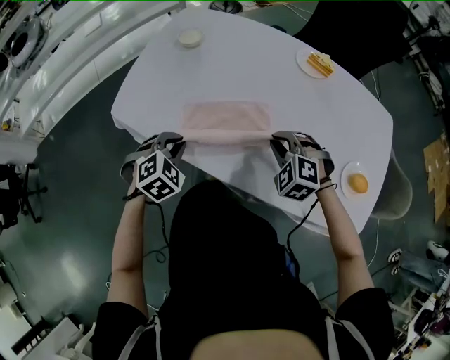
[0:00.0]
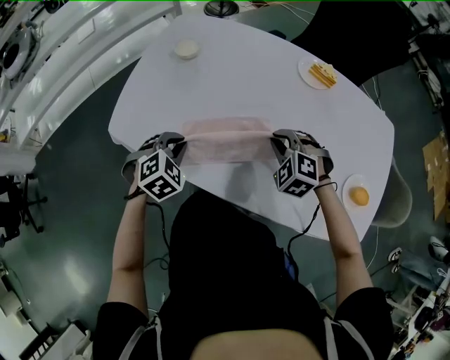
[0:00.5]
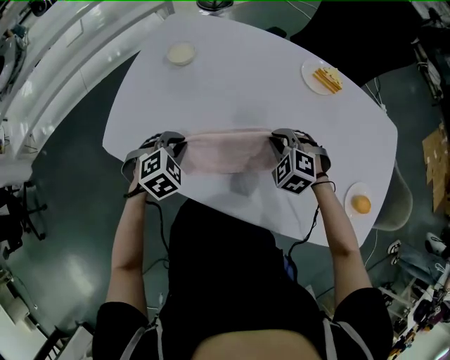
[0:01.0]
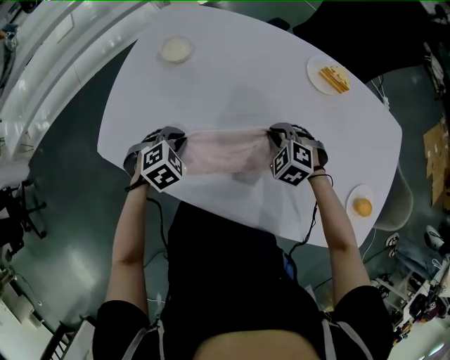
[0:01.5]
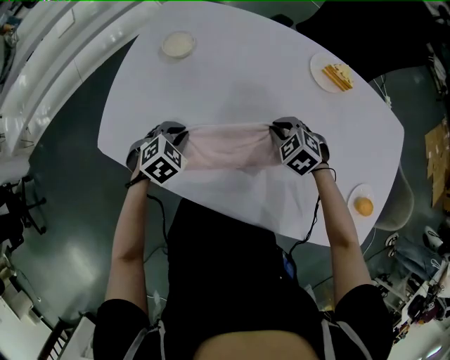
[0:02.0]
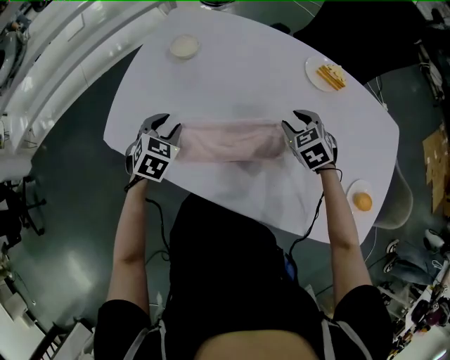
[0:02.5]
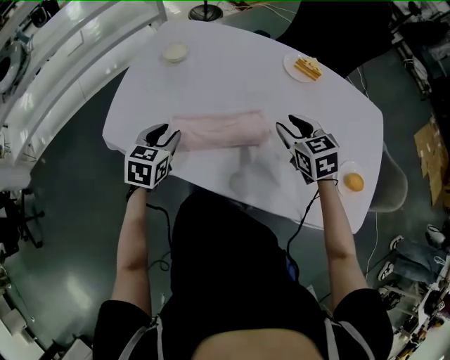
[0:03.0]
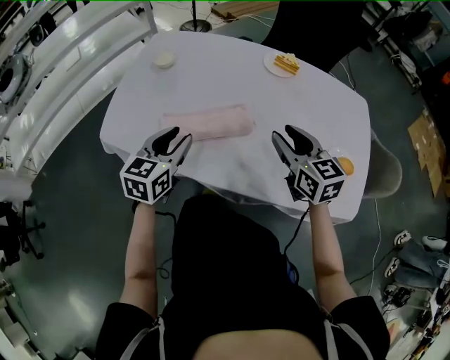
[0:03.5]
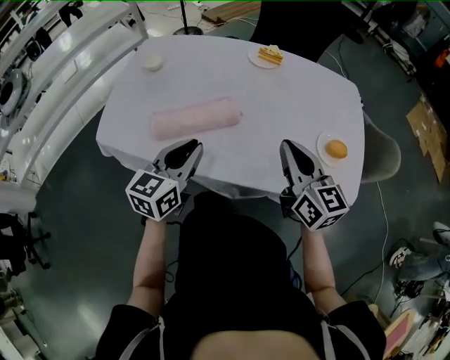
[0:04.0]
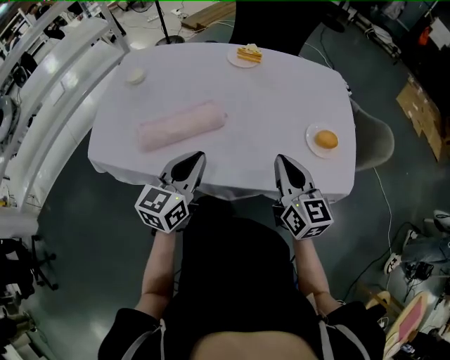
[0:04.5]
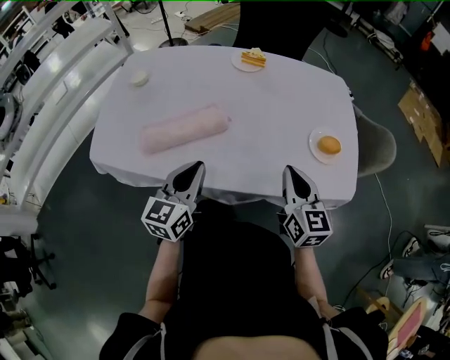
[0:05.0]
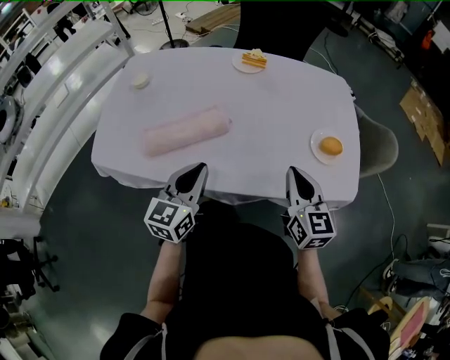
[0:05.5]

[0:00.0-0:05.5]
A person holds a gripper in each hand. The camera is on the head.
0:00.0 to 0:02.0: Both grippers travel together forward and downward, approximately 20 cm. The right gripper swivels some 30 degrees.
0:02.0 to 0:03.5: The two grippers go approximately 30 cm upward and backward. The right gripper points its fingers approximately 40 degrees further upward, and opens up; the left gripper angles its fingers upward, by roughly 40 degrees, and opens its fingers.
0:03.5 to 0:05.5: Both grippers move to the right and backward, about 15 cm. The right gripper swivels some 30 degrees, and closes; the left gripper closes its fingers.

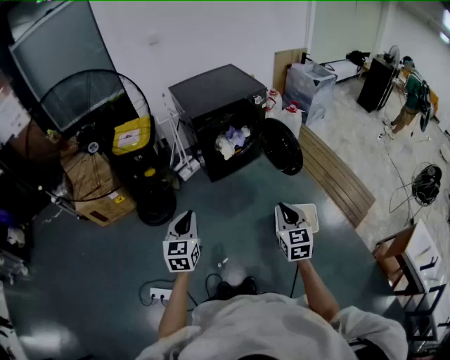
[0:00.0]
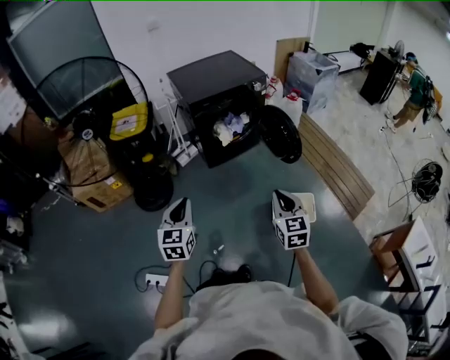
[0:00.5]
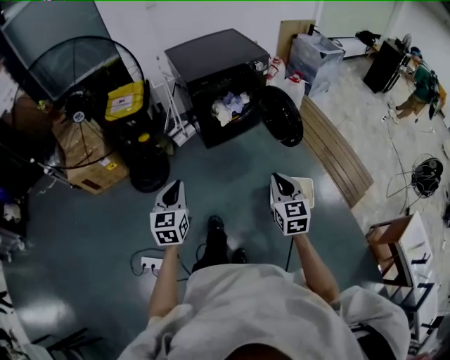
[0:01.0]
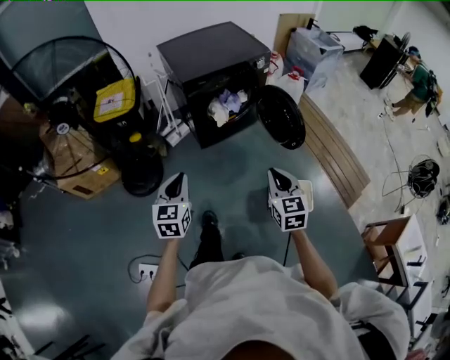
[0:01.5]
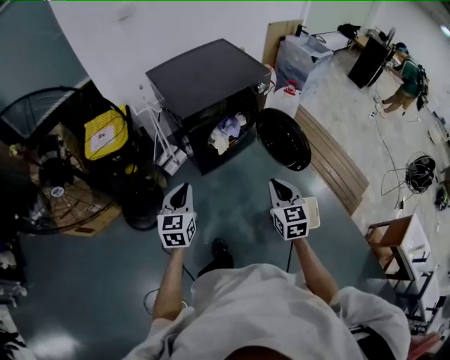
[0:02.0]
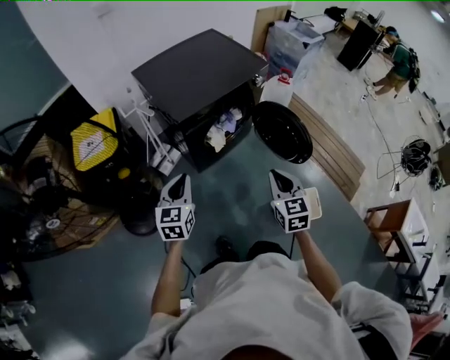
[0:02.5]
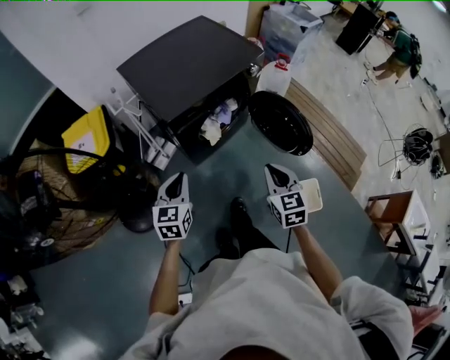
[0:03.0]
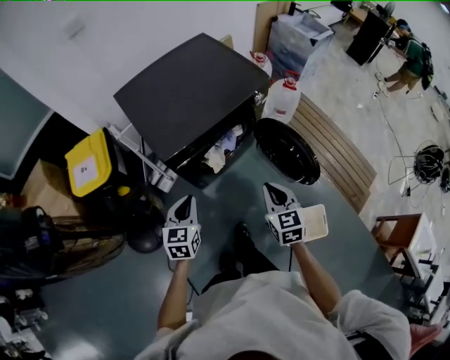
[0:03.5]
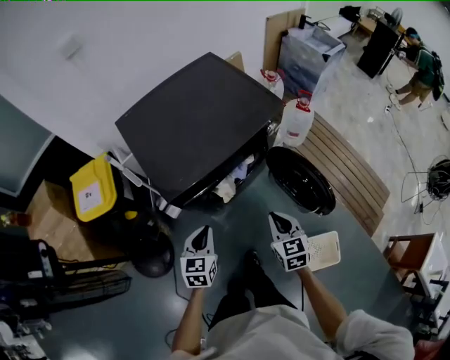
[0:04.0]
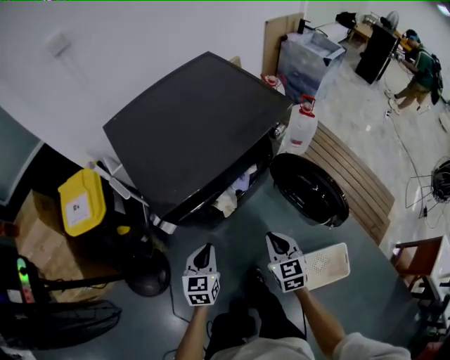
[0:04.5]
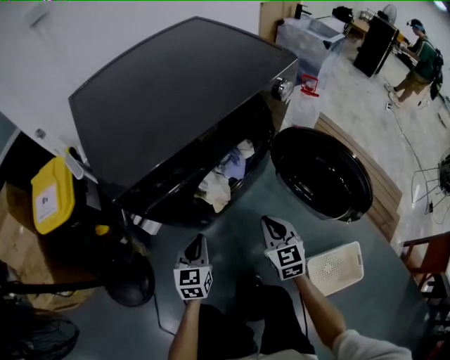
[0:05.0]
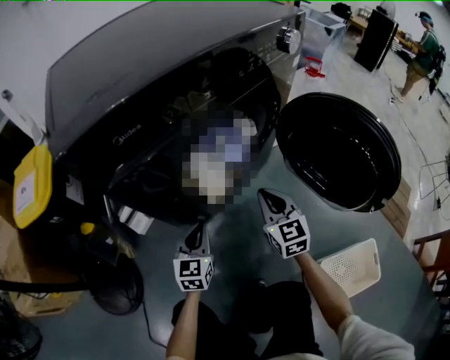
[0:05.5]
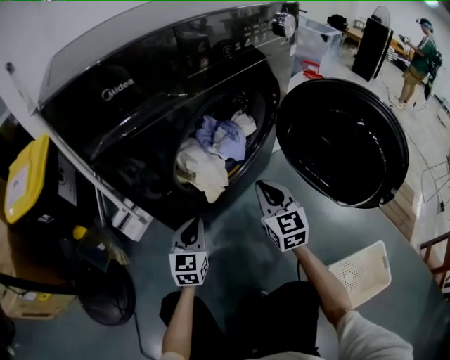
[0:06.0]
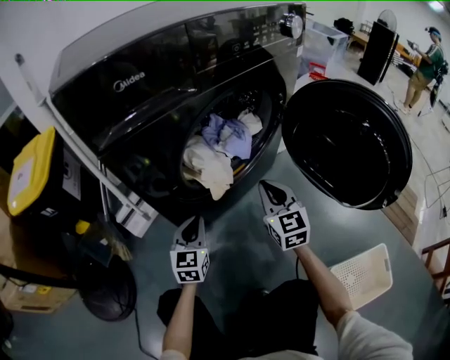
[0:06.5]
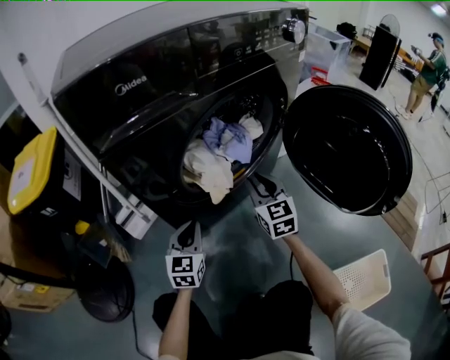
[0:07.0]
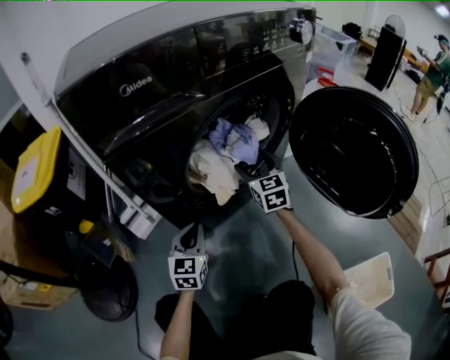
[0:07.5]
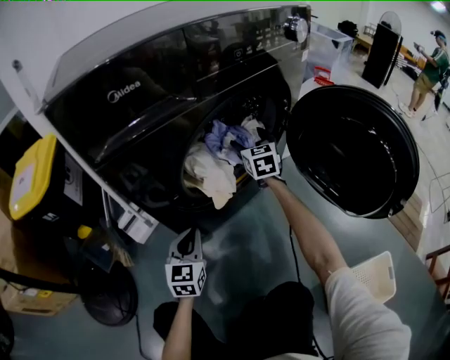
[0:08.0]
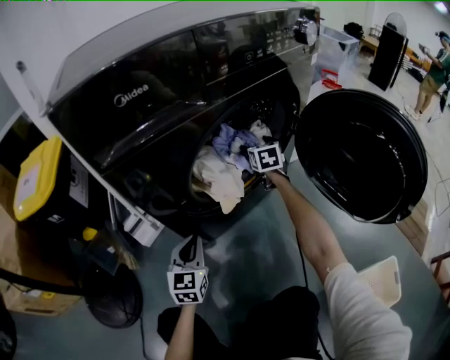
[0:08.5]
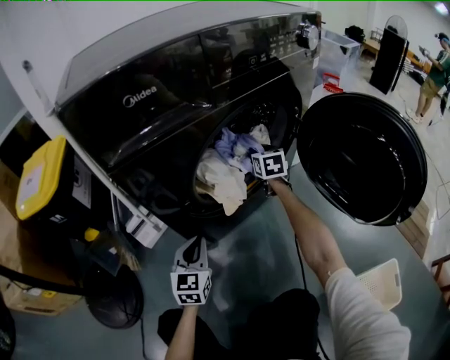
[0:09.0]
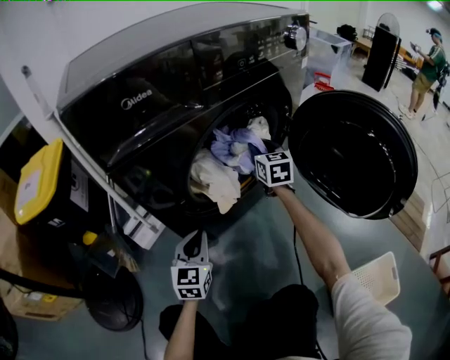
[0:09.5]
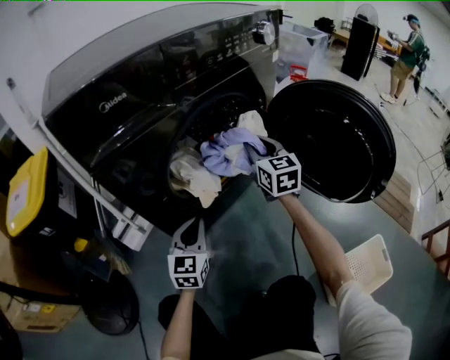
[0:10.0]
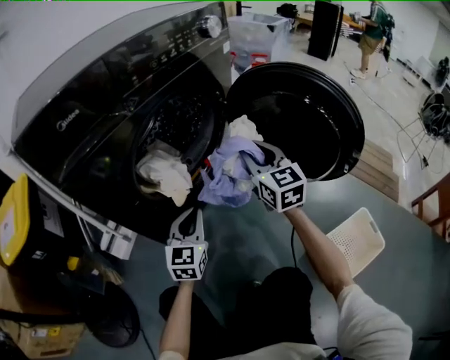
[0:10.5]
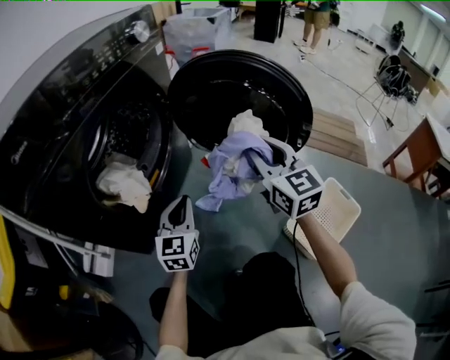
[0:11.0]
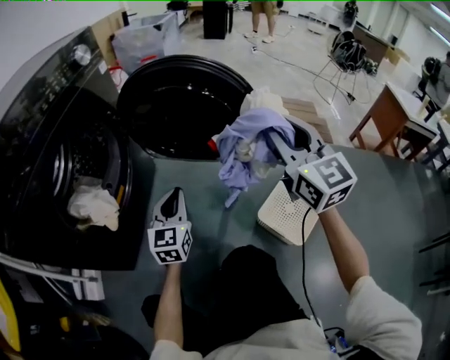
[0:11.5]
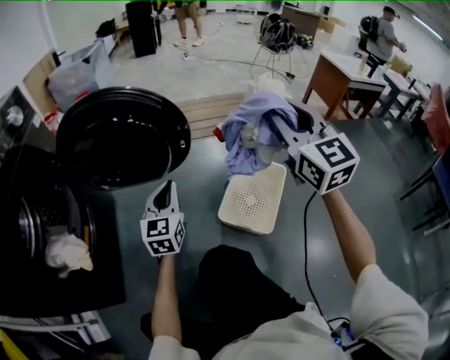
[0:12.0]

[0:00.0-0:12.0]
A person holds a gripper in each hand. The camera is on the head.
0:00.0 to 0:02.0: Both grippers travel together forward, some 30 cm.
0:02.0 to 0:04.0: Both grippers move forward and downward, roughly 30 cm.
0:04.0 to 0:06.0: Both grippers travel together downward, roughly 50 cm. The right gripper turns by some 20 degrees.
0:06.0 to 0:08.0: The right gripper is displaced forward by roughly 20 cm, and opens up.
0:08.0 to 0:10.0: The left gripper moves to the right, about 5 cm. The right gripper is displaced backward, upward and to the right by some 15 cm, and closes up.
0:10.0 to 0:12.0: Both grippers are carried approximately 50 cm. The right gripper swivels some 50 degrees. Meanwhile the left gripper rotates some 50 degrees.

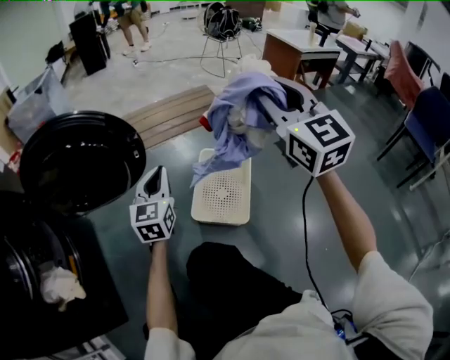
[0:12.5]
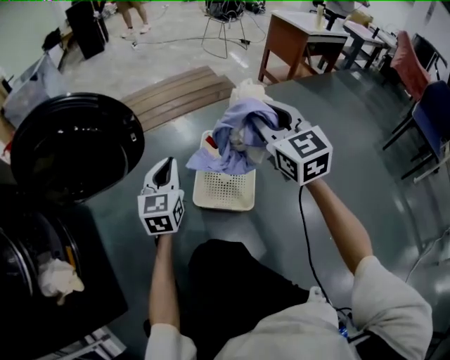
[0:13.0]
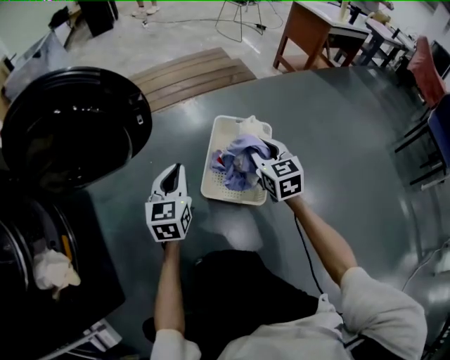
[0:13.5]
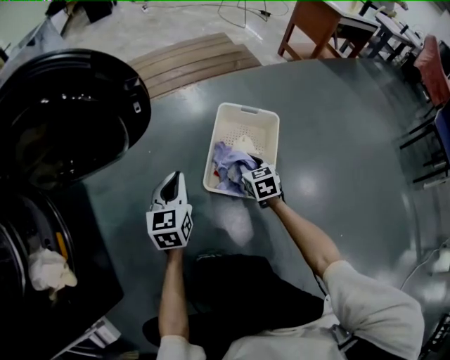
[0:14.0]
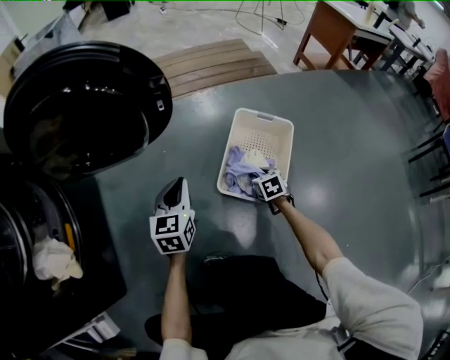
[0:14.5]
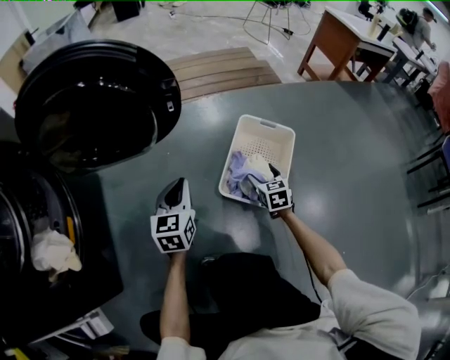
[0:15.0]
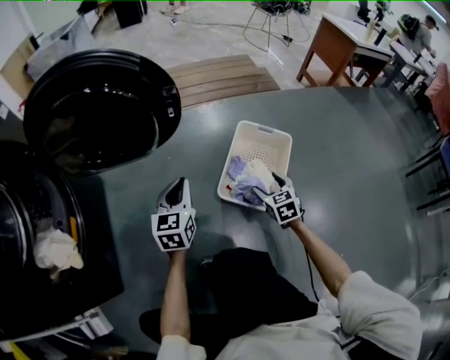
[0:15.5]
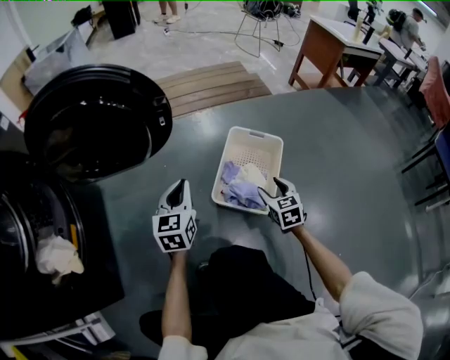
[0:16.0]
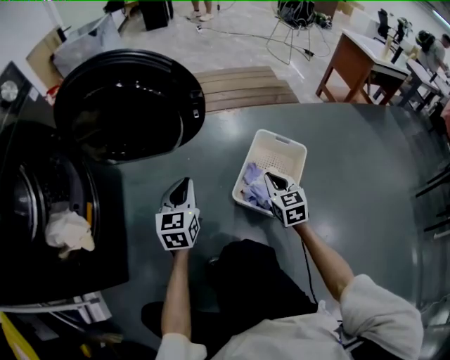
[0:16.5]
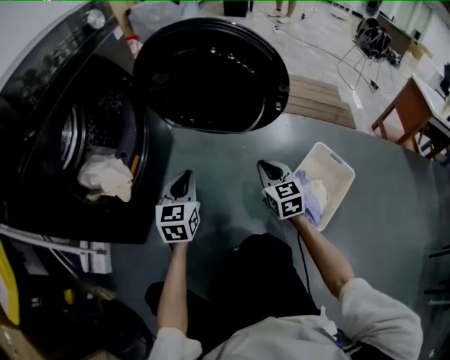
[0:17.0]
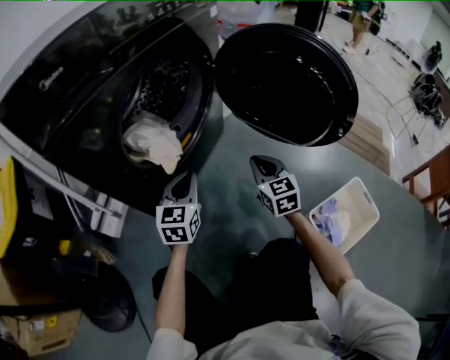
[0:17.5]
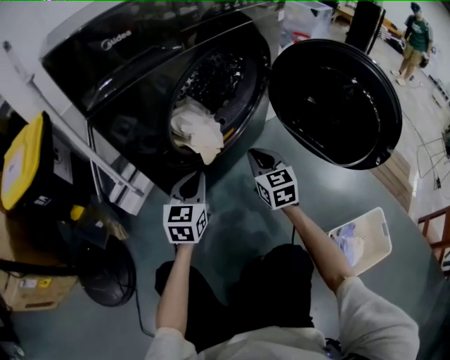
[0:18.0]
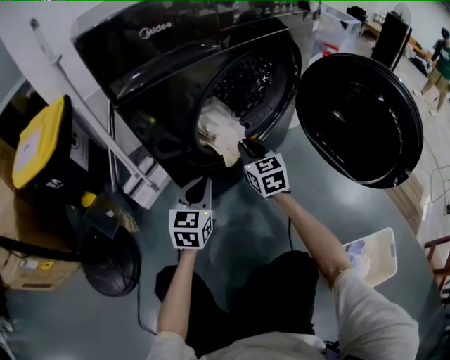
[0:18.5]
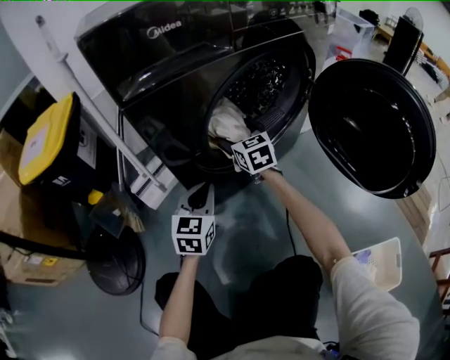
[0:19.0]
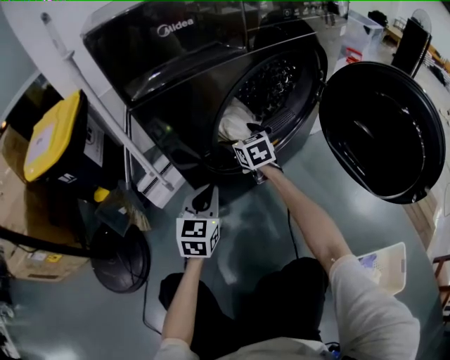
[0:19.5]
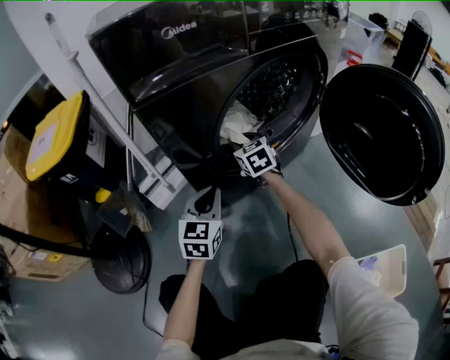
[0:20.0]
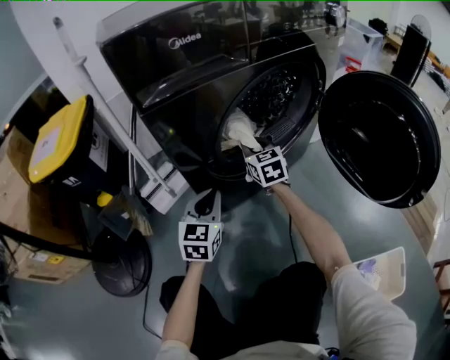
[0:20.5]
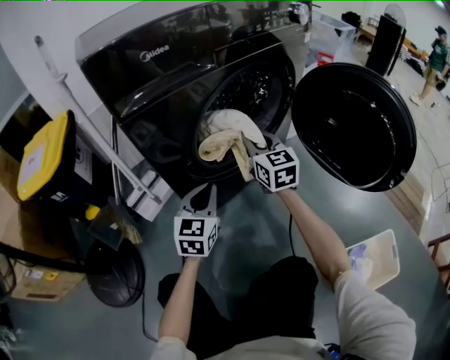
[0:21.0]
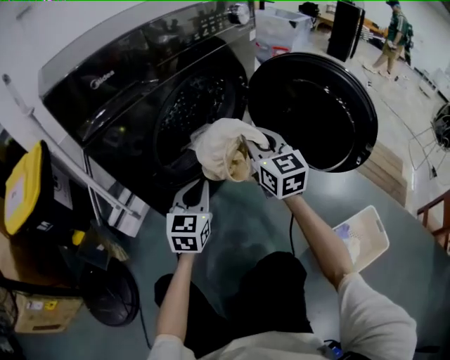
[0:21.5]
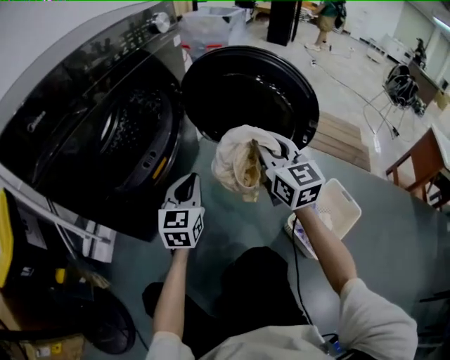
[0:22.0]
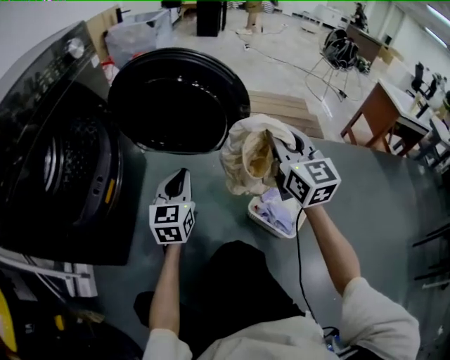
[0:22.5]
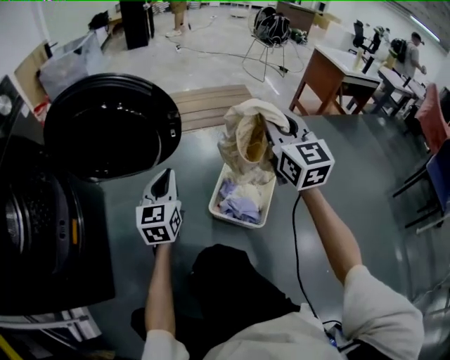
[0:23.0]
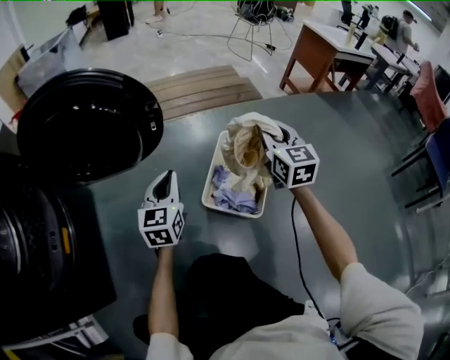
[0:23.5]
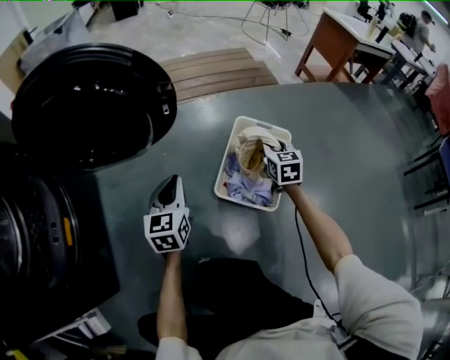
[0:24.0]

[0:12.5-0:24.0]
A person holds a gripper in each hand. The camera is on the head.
0:12.5 to 0:14.5: The left gripper shifts approximately 20 cm downward. The right gripper heads downward, covering some 60 cm, and points its fingers roughly 60 degrees further downward.
0:14.5 to 0:16.5: The right gripper moves upward, roughly 20 cm, rotates roughly 30 degrees, and opens, then closes once more. The left gripper heads upward, covering about 5 cm.
0:16.5 to 0:18.5: Both grippers are carried about 50 cm. The left gripper swivels roughly 50 degrees; the right gripper turns by roughly 70 degrees.
0:18.5 to 0:20.0: The right gripper is displaced forward and to the left by roughly 10 cm, and opens, then closes again.
0:20.0 to 0:22.0: The right gripper moves approximately 50 cm, and swivels roughly 50 degrees. The left gripper ends up approximately 25 cm from where it was, and changes its angle by roughly 30 degrees.
0:22.0 to 0:24.0: The left gripper shifts by some 30 cm, and rotates some 30 degrees, while the right gripper ends up some 50 cm from where it was, and turns by approximately 60 degrees.
